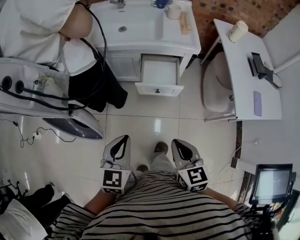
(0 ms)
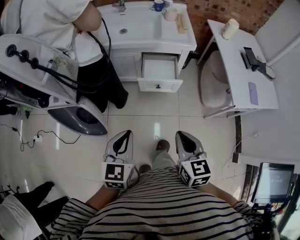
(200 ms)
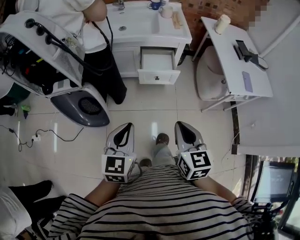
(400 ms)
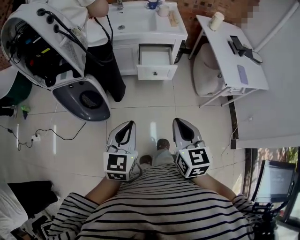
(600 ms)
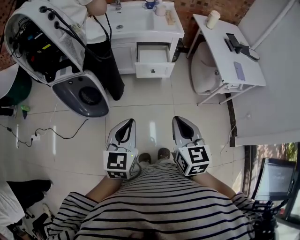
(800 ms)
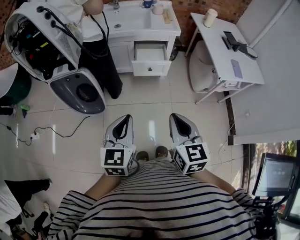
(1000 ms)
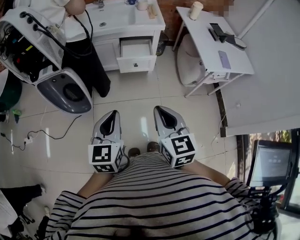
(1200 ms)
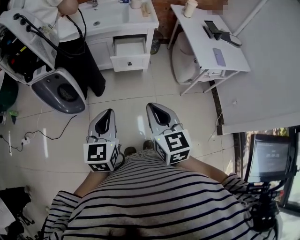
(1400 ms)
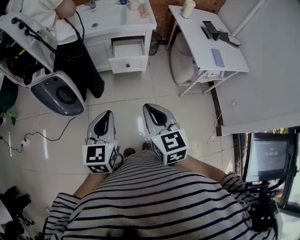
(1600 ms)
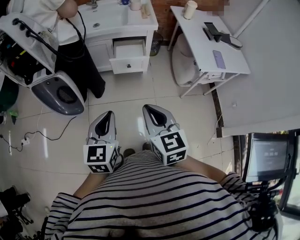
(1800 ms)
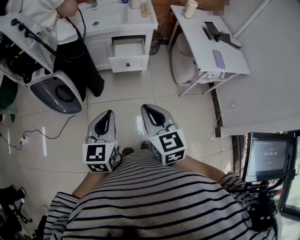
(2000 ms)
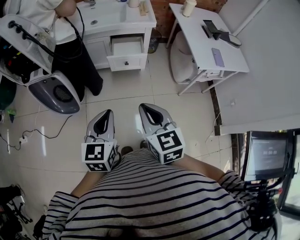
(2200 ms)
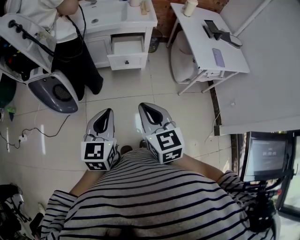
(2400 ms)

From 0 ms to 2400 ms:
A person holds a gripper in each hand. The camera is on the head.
From 0 ms to 1200 ms: The left gripper moves backward, approximately 15 cm. The right gripper travels backward and upward by some 20 cm.
From 1200 ms to 2400 ms: The grippers stay close to where they were, moving slightly.

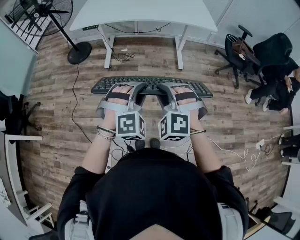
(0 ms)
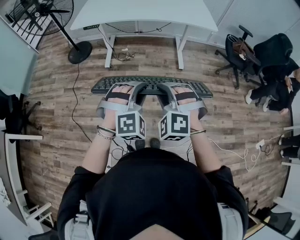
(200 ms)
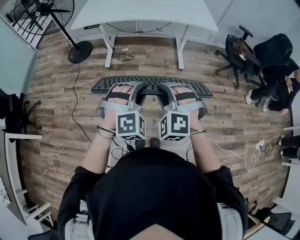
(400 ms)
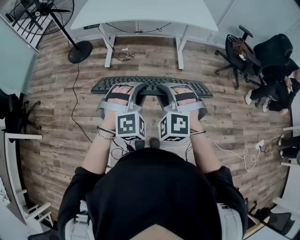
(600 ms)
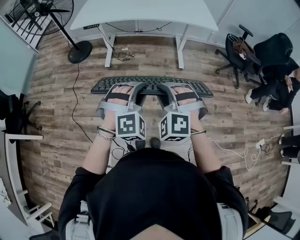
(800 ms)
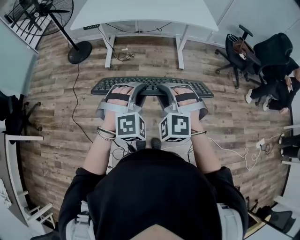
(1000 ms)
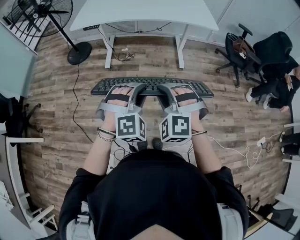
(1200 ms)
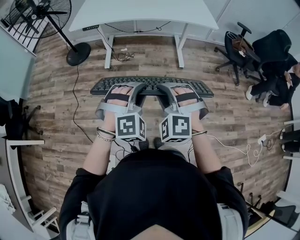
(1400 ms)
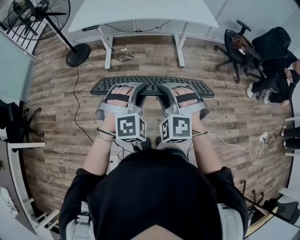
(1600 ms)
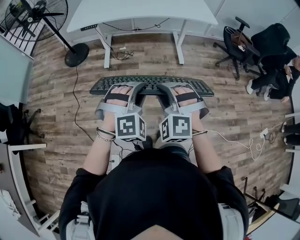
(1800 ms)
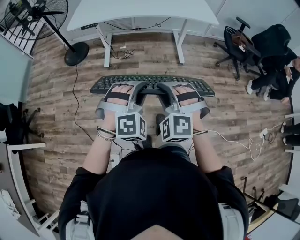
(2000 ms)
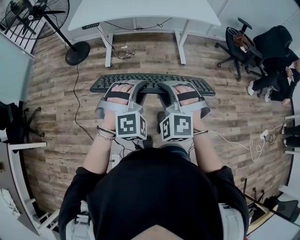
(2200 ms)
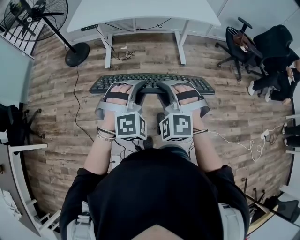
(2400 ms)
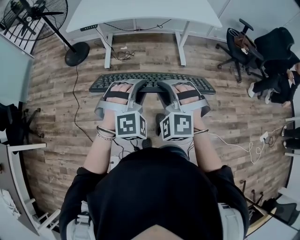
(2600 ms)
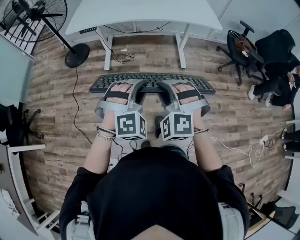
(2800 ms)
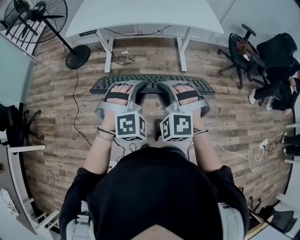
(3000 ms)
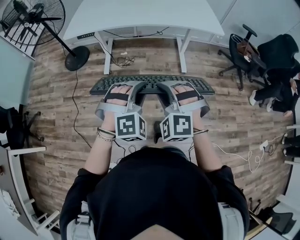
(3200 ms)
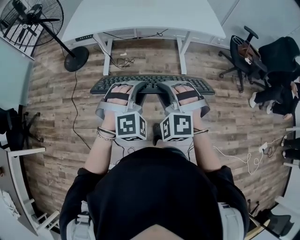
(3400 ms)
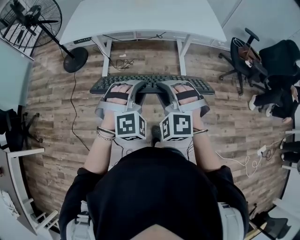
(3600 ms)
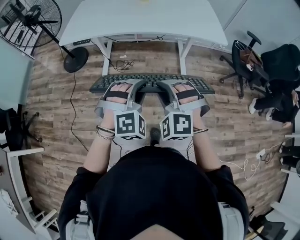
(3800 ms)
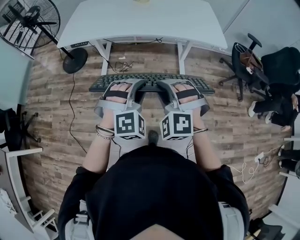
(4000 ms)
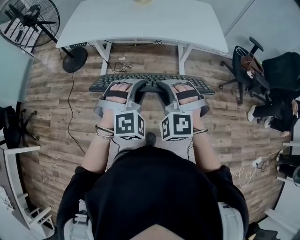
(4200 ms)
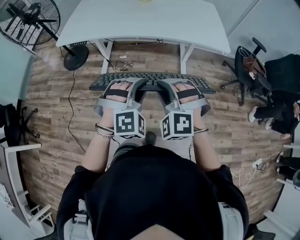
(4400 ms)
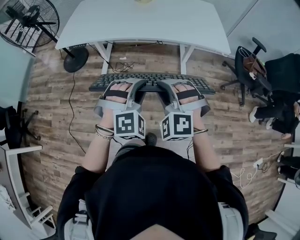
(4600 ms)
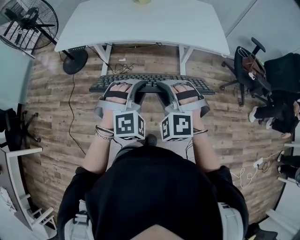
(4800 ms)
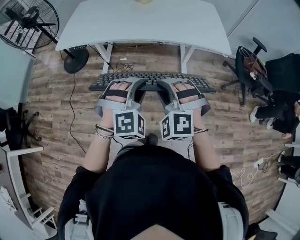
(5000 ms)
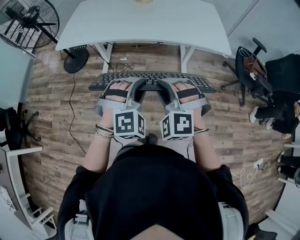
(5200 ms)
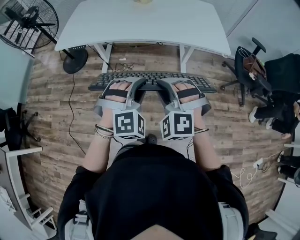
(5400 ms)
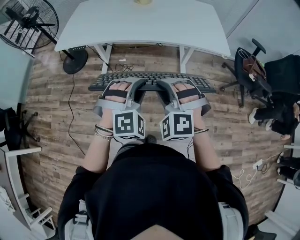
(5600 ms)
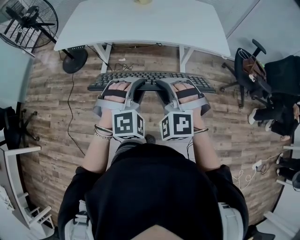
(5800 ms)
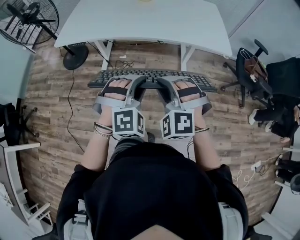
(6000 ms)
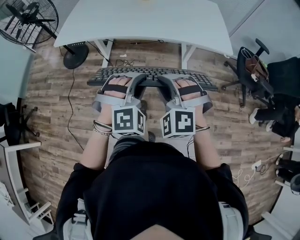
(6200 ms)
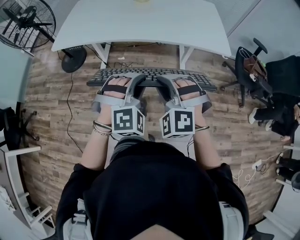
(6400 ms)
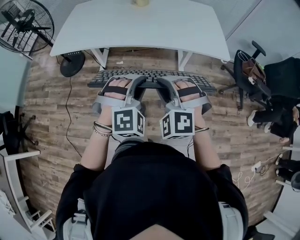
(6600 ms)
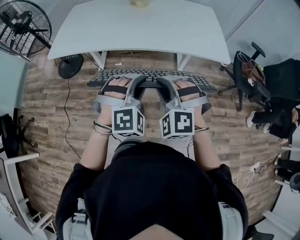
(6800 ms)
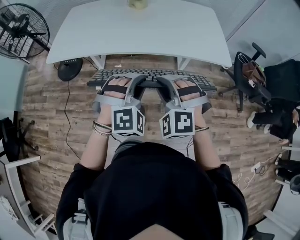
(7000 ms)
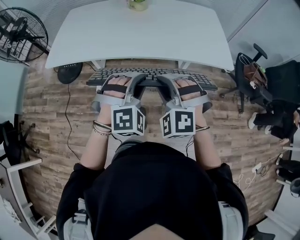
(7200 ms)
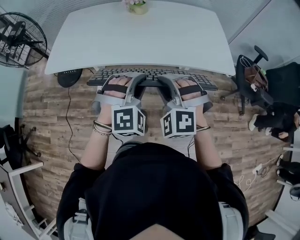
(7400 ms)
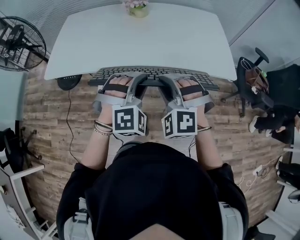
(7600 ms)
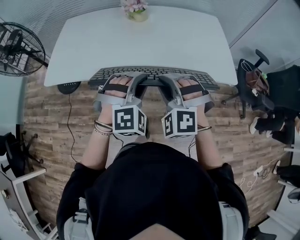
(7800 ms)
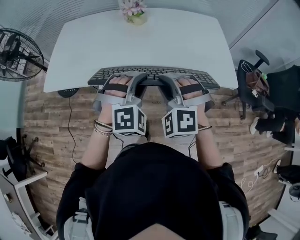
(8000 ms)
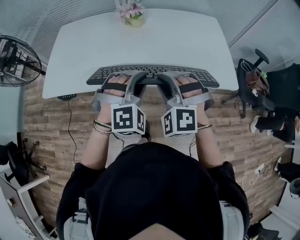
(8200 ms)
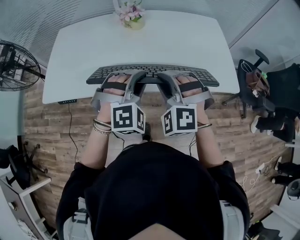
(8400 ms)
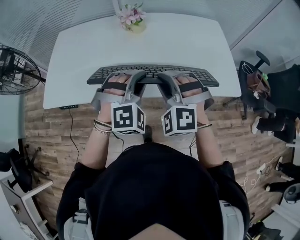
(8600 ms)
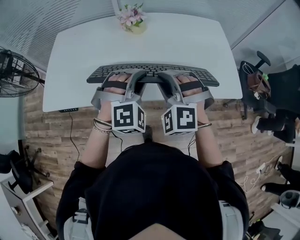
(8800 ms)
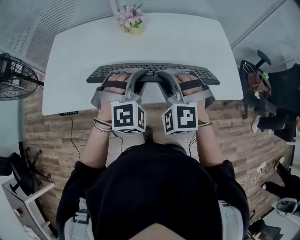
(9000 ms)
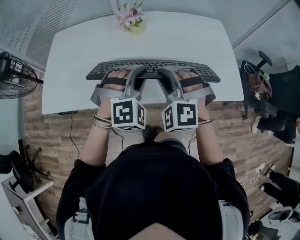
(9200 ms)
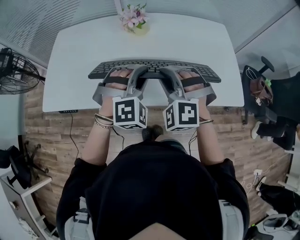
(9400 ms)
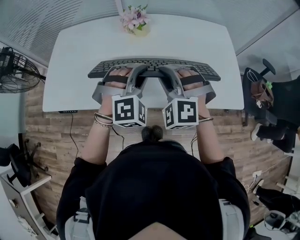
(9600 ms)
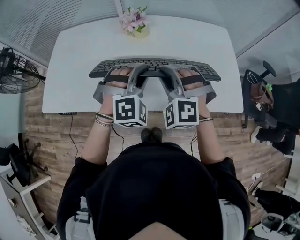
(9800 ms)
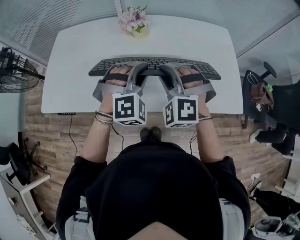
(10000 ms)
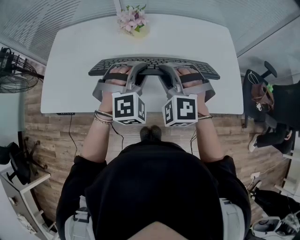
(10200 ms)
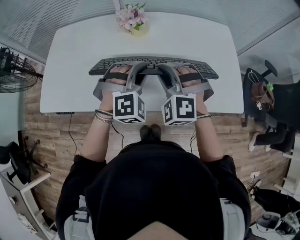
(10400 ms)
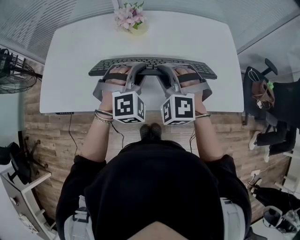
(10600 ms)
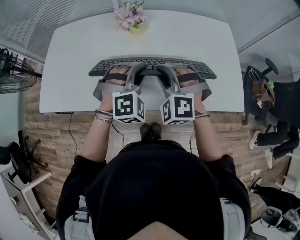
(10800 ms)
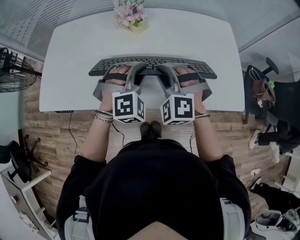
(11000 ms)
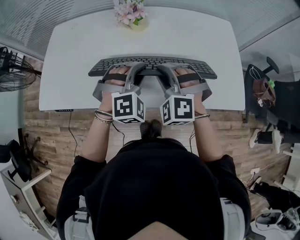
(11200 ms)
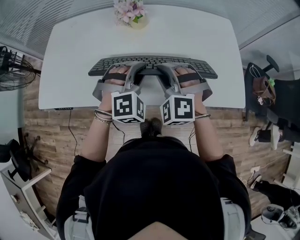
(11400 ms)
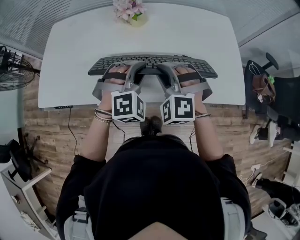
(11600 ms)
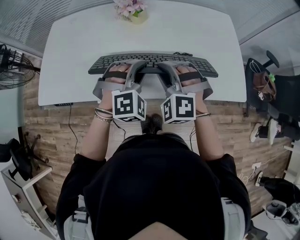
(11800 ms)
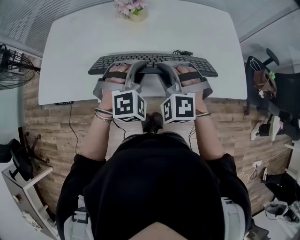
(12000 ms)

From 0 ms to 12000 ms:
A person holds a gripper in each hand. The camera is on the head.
From 0 ms to 1600 ms: The grippers move only a little.
From 1600 ms to 3000 ms: The two grippers go some 10 cm forward.
From 3000 ms to 4400 ms: Both grippers travel together forward and to the right, roughly 20 cm.
From 4400 ms to 6000 ms: The grippers make only small movements.
From 6000 ms to 7600 ms: Both grippers move forward, some 20 cm.
From 7600 ms to 9000 ms: Both grippers travel together forward, roughly 20 cm.
From 9000 ms to 10400 ms: Both grippers travel together forward, about 5 cm.
From 10400 ms to 12000 ms: The right gripper ends up some 5 cm from where it was, while the left gripper shifts by some 5 cm.

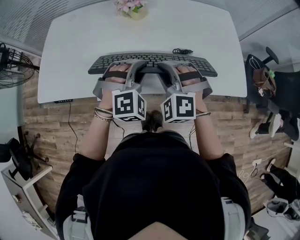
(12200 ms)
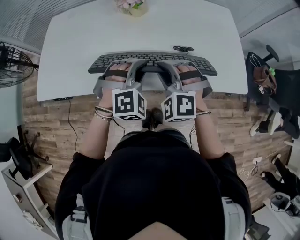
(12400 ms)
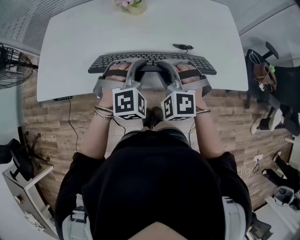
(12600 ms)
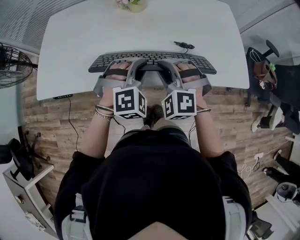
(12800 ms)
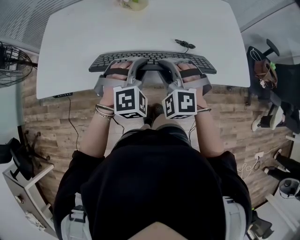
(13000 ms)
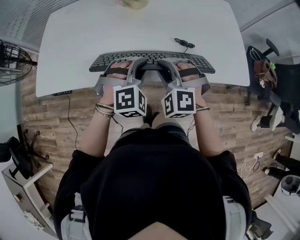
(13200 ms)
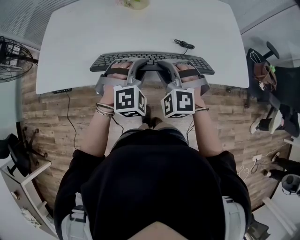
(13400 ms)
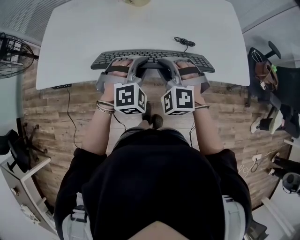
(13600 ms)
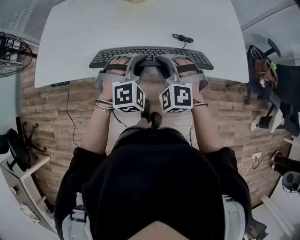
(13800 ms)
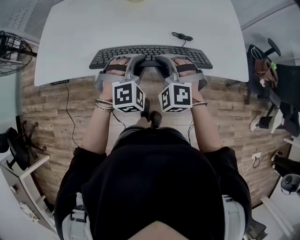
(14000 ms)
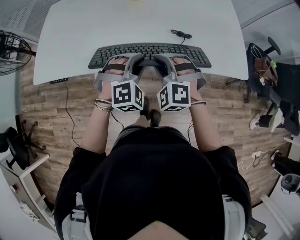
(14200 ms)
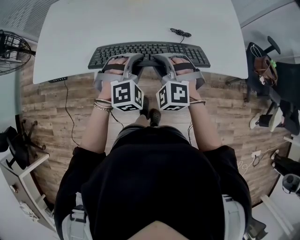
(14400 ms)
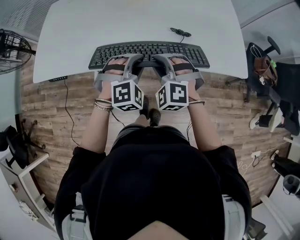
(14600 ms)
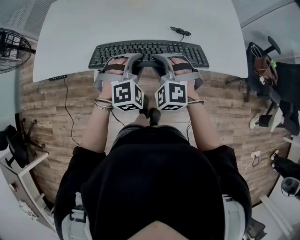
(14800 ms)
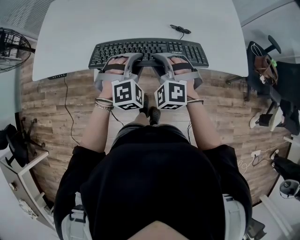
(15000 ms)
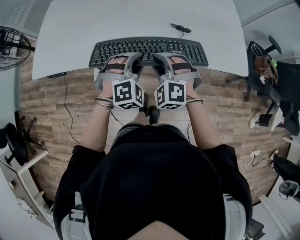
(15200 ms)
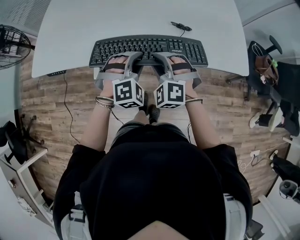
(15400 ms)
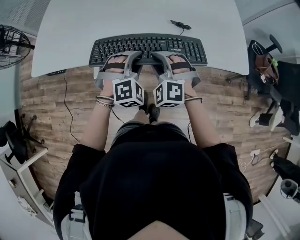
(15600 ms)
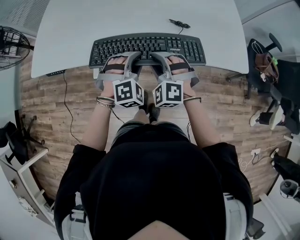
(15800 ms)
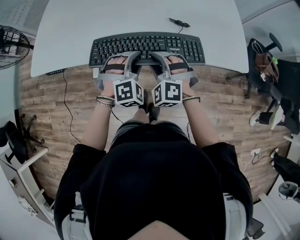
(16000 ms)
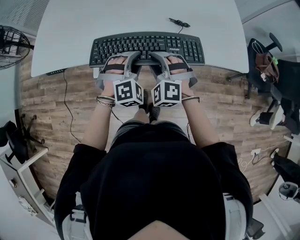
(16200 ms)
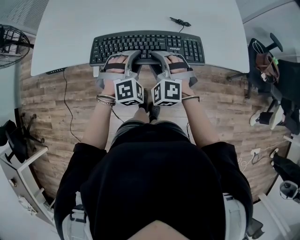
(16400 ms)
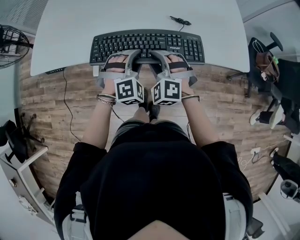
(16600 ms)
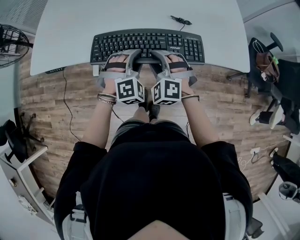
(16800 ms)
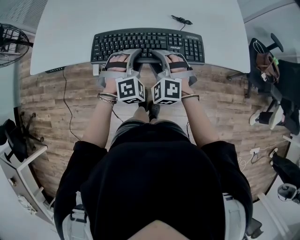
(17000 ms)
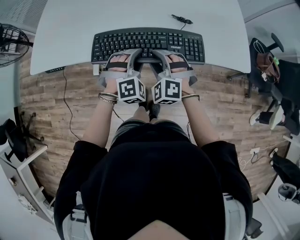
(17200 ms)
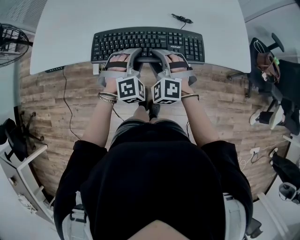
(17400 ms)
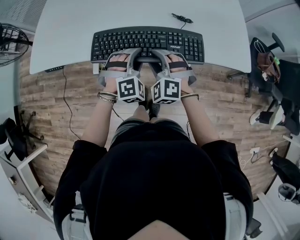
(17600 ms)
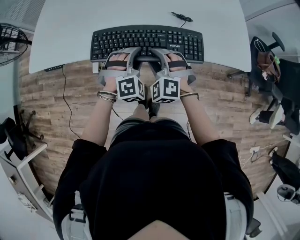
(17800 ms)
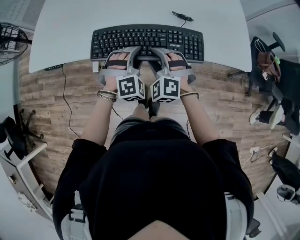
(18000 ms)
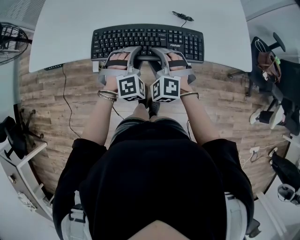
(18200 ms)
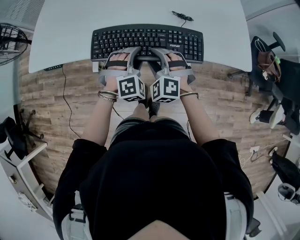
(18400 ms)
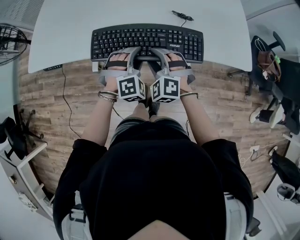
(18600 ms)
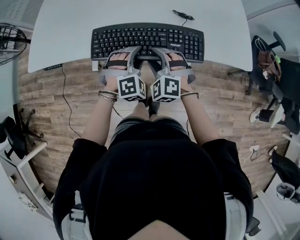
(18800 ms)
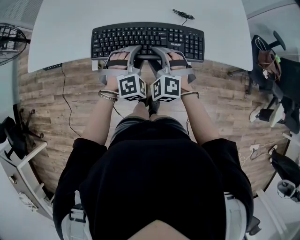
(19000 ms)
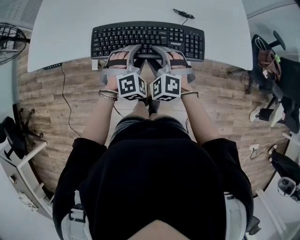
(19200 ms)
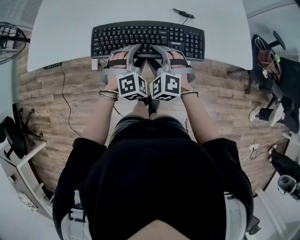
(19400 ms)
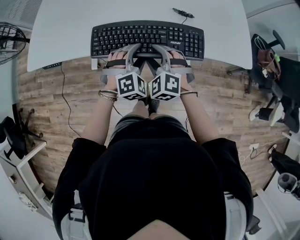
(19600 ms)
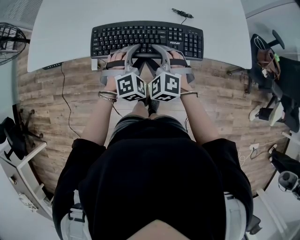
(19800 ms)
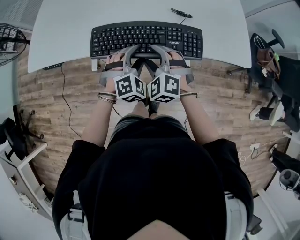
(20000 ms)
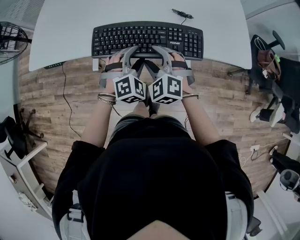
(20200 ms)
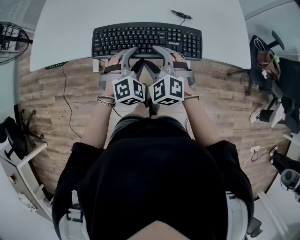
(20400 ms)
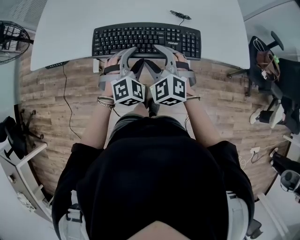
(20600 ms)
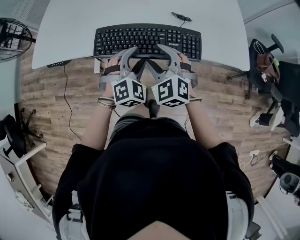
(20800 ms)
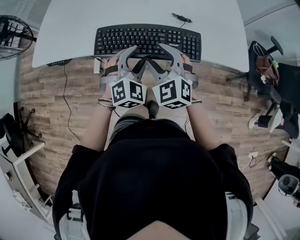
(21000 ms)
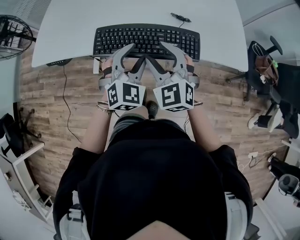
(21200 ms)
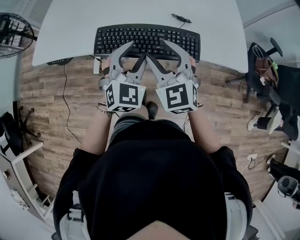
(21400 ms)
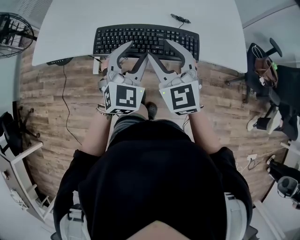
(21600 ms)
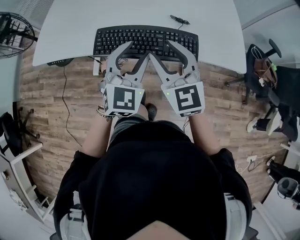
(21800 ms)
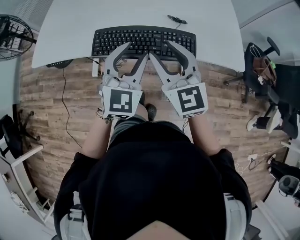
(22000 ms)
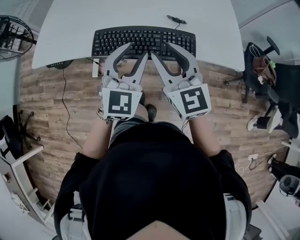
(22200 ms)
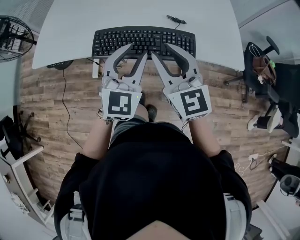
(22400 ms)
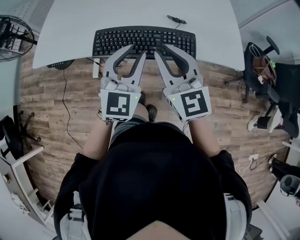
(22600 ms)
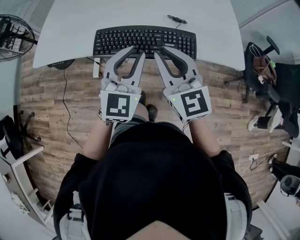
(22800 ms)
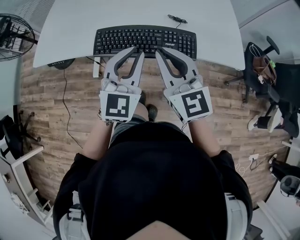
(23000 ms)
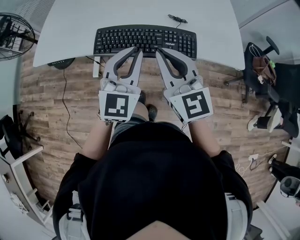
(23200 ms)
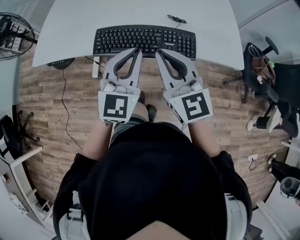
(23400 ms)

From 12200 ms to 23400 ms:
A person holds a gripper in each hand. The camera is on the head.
From 12200 ms to 13800 ms: The left gripper shifts some 5 cm backward. The right gripper changes place by approximately 5 cm.
From 13800 ms to 15400 ms: The grippers move only a little.
From 15400 ms to 20200 ms: The grippers make only small movements.
From 20200 ms to 21800 ms: Both grippers move upward, some 15 cm. The right gripper swivels about 40 degrees. The left gripper turns by about 40 degrees.
From 21800 ms to 23400 ms: The left gripper closes; the right gripper closes its fingers.
